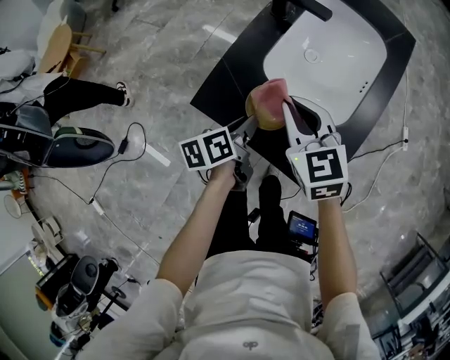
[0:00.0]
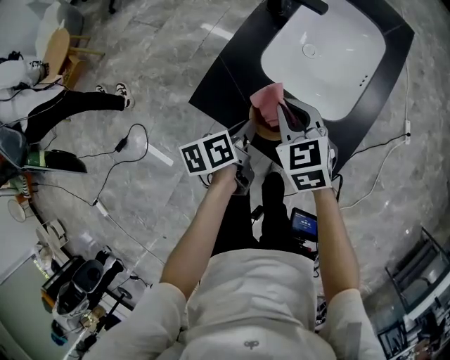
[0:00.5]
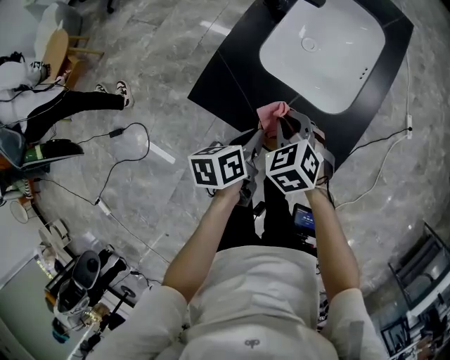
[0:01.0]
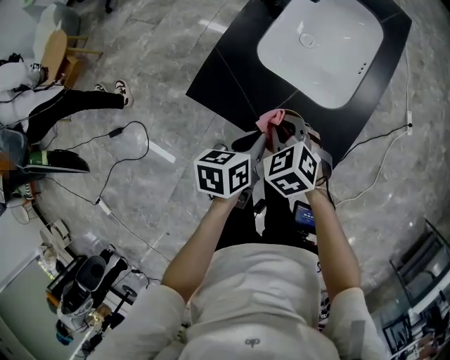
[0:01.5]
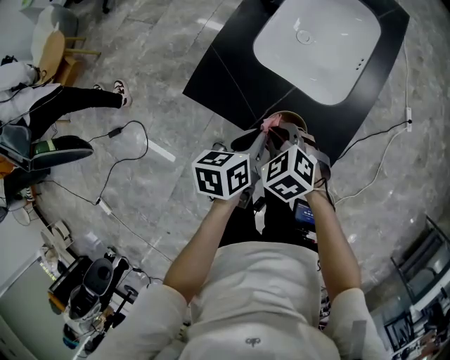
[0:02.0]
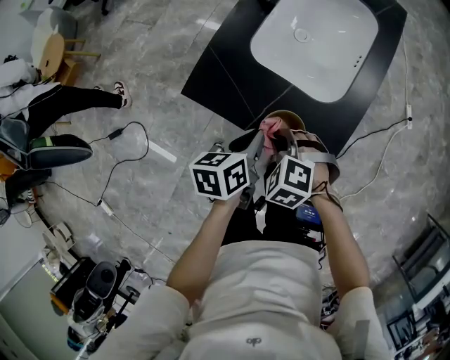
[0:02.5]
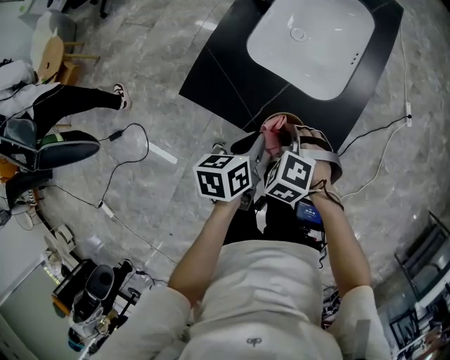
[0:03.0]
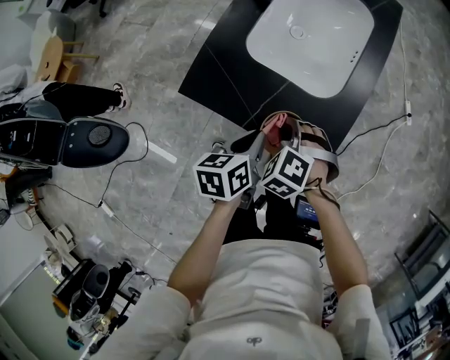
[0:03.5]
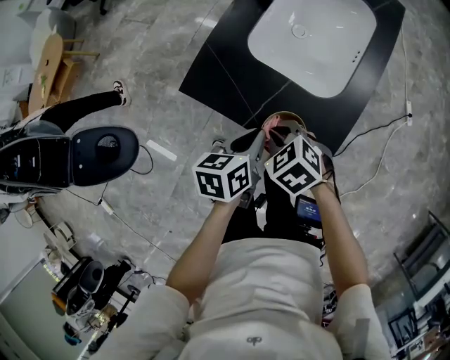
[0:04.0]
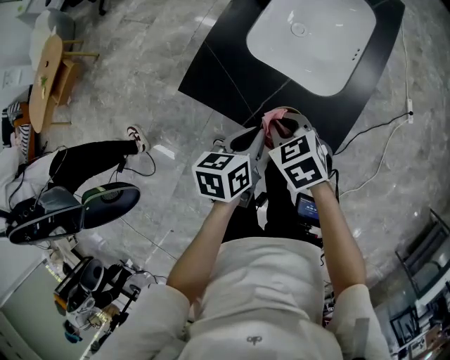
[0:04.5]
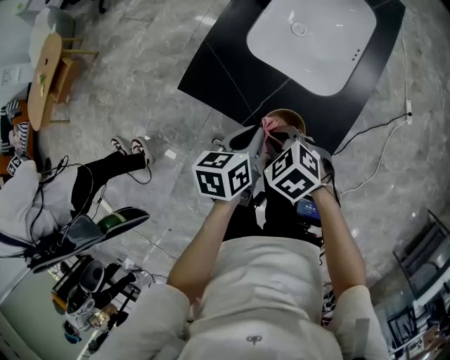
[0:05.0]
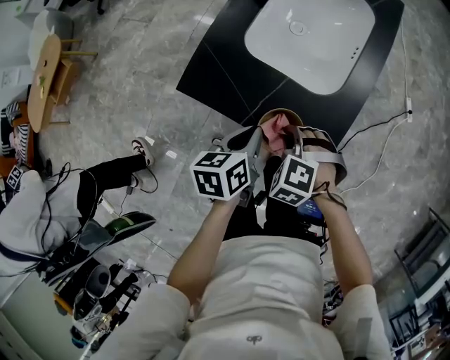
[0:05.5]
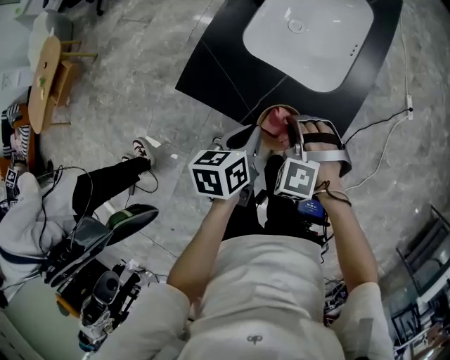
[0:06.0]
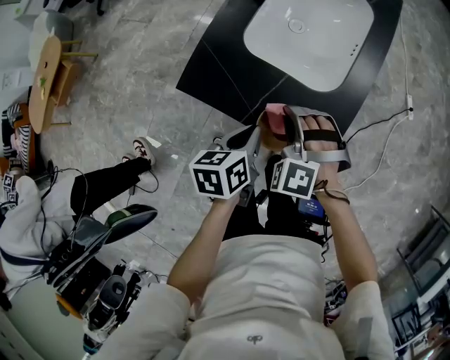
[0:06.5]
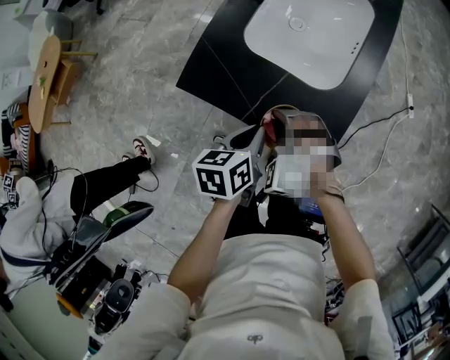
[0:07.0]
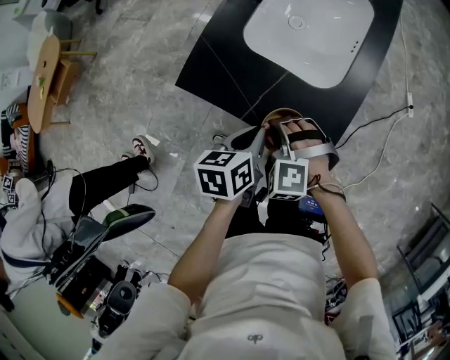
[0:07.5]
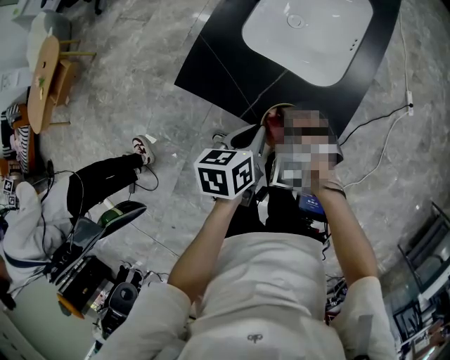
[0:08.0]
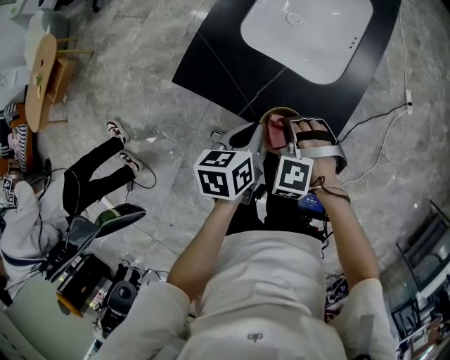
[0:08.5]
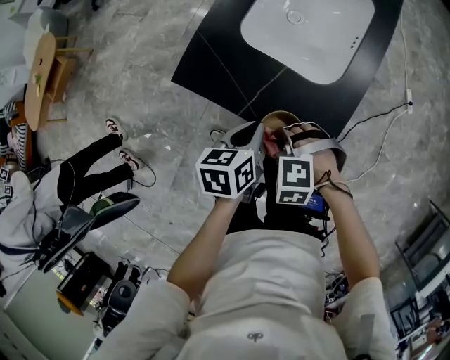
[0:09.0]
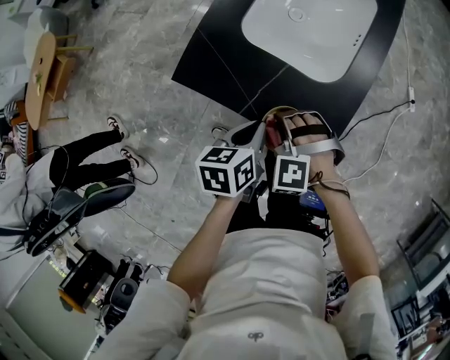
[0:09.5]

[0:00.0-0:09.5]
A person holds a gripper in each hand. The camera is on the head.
0:00.0 to 0:02.0: The left gripper moves backward and to the right, approximately 10 cm, and rotates about 20 degrees, while the right gripper heads downward and backward, covering some 15 cm, and swivels some 30 degrees.
0:04.0 to 0:05.5: The right gripper shifts by about 5 cm, and changes its angle by roughly 30 degrees.
0:07.5 to 0:09.5: The right gripper travels backward and back again, approximately 5 cm each way.

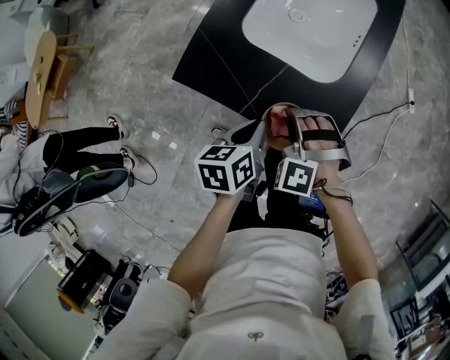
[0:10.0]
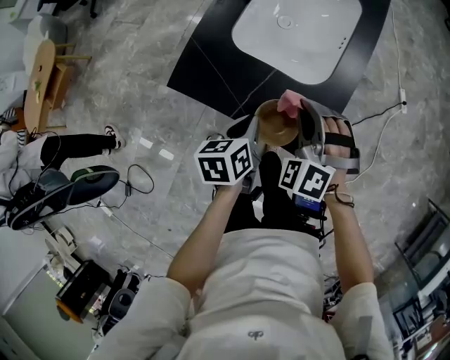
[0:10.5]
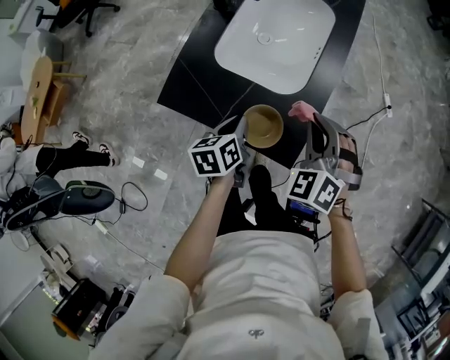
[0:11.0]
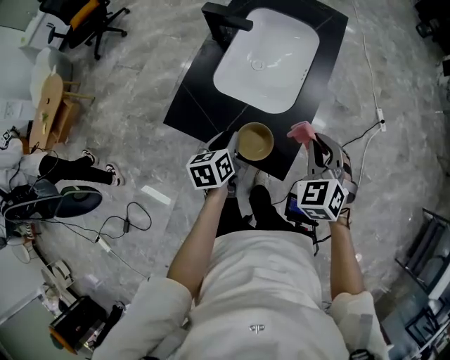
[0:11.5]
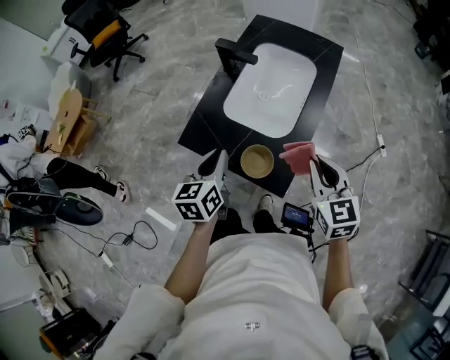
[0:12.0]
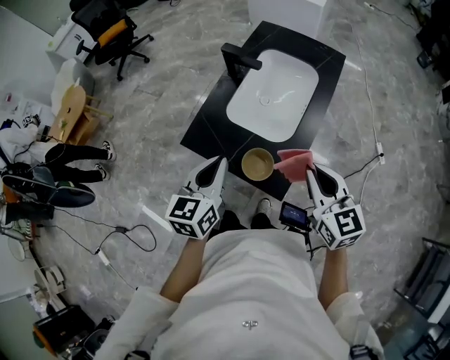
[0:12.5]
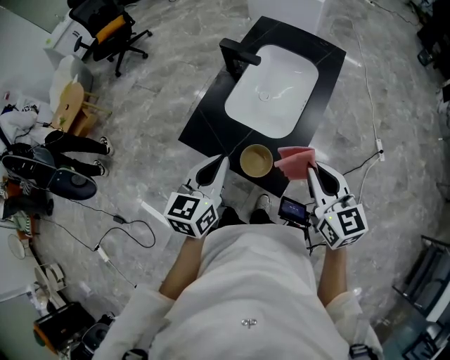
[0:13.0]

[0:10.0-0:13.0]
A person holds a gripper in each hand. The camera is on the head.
0:10.0 to 0:11.5: The right gripper moves to the right and upward, some 20 cm, and rolls clockwise, seen from behind, by about 40 degrees. Meanwhile the left gripper shifts by about 5 cm, and opens its fingers.
0:11.5 to 0:13.0: The right gripper travels upward by about 10 cm, and changes its angle by approximately 50 degrees, while the left gripper is displaced upward by roughly 20 cm, changes its angle by approximately 30 degrees, and closes.

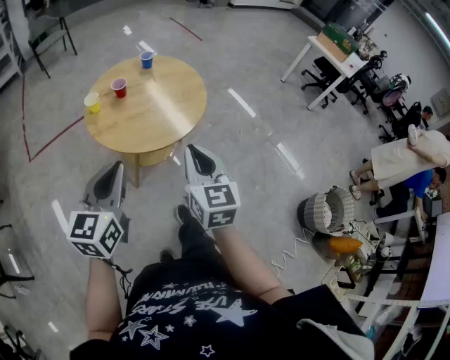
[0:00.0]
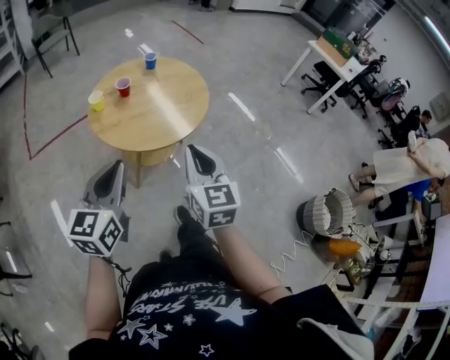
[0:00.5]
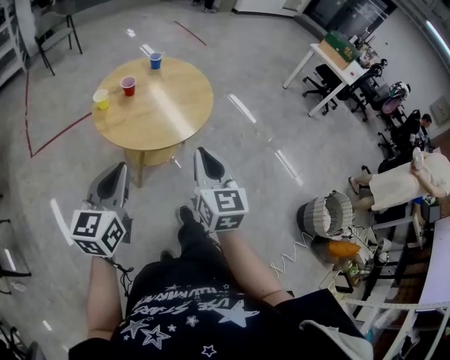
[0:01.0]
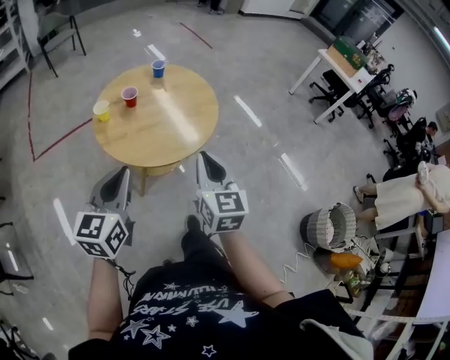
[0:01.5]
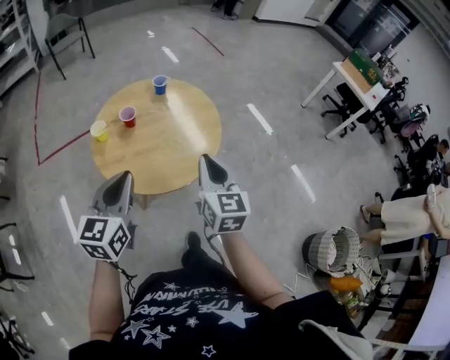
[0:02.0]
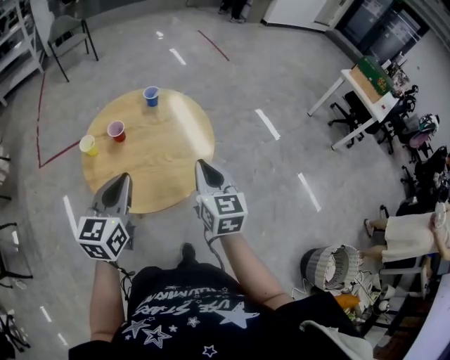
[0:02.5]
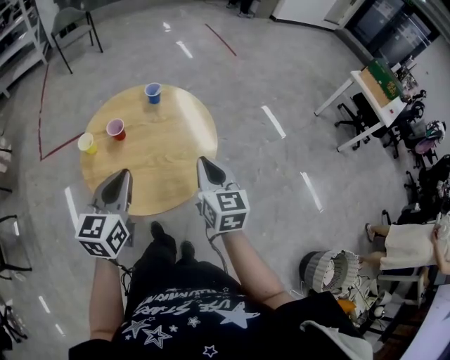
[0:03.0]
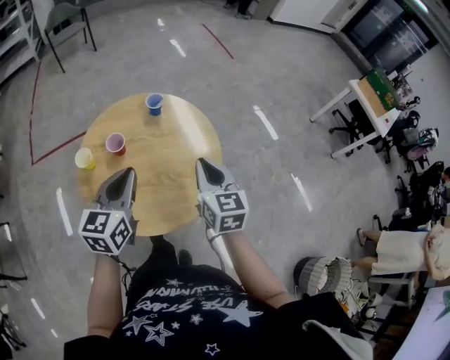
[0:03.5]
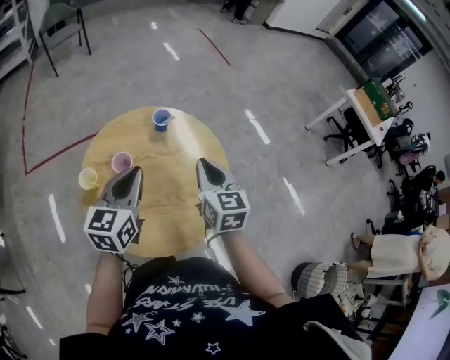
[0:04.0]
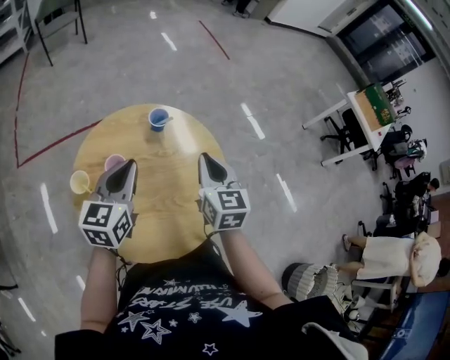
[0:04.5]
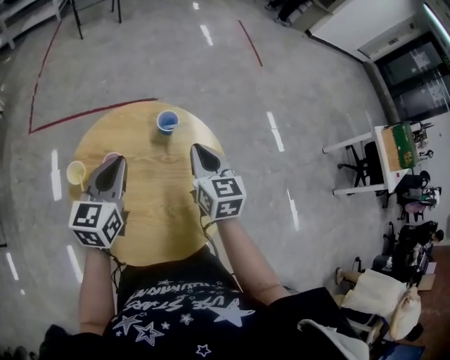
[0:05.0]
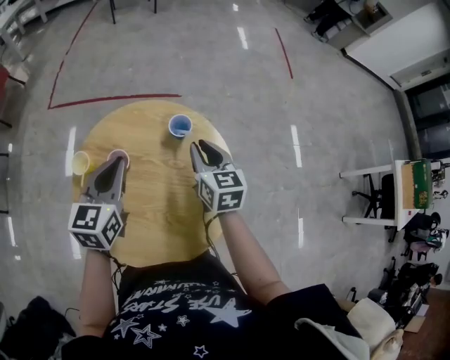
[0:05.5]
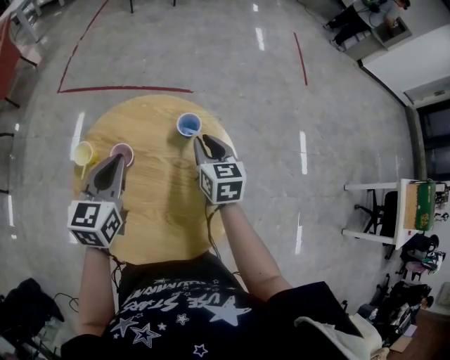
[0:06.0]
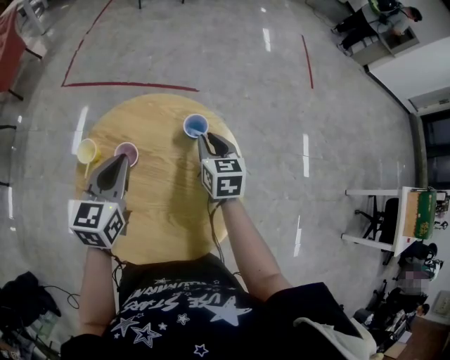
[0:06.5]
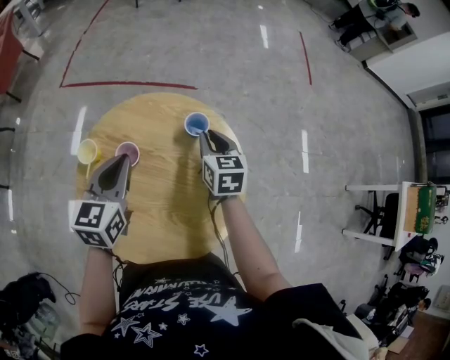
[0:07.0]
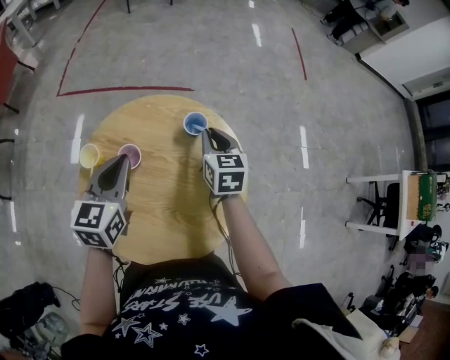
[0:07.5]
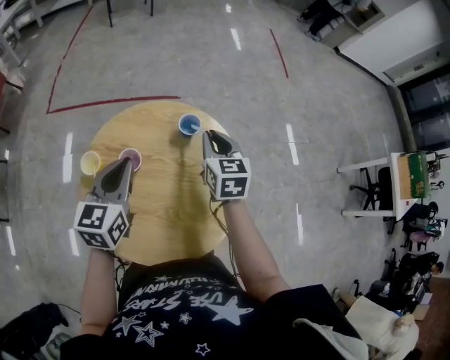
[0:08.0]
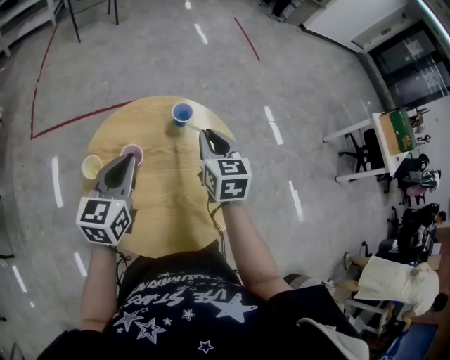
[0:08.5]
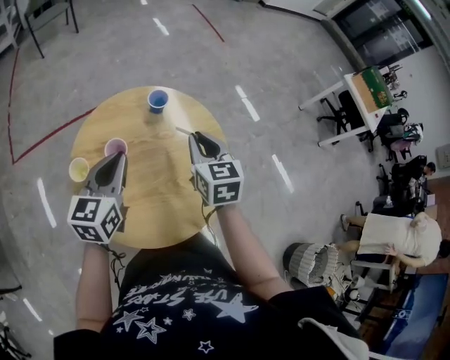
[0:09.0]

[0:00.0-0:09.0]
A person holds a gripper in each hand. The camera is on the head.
0:00.0 to 0:02.0: The two grippers go approximately 15 cm forward.
0:02.0 to 0:04.5: The grippers both shift forward by roughly 35 cm.
0:04.5 to 0:07.0: The right gripper shifts by roughly 25 cm, and swivels approximately 30 degrees; the left gripper moves approximately 10 cm, and rotates some 30 degrees.
0:07.0 to 0:09.0: The right gripper ends up about 20 cm from where it was, and rotates some 30 degrees; the left gripper changes place by roughly 5 cm, and rotates some 30 degrees.

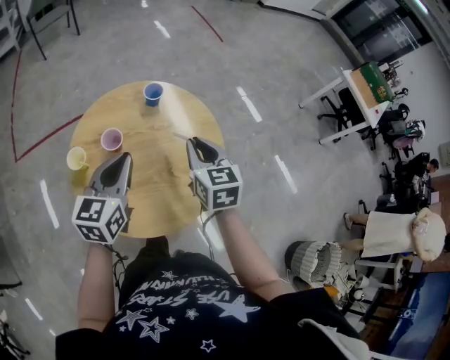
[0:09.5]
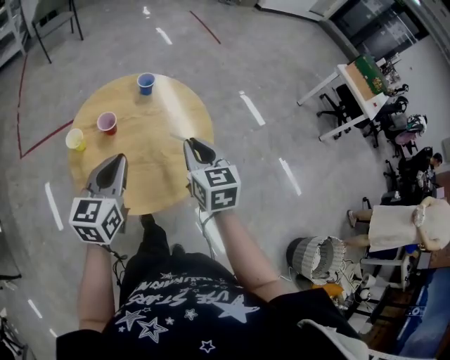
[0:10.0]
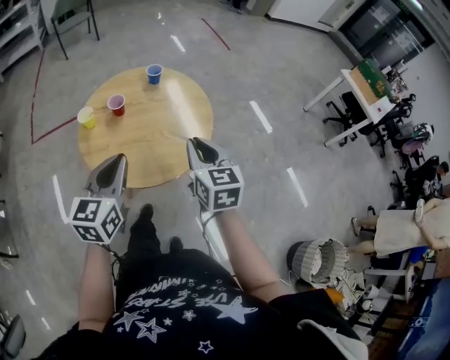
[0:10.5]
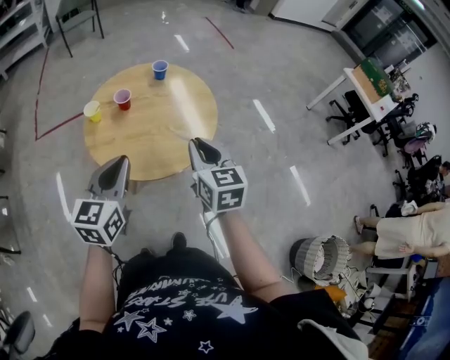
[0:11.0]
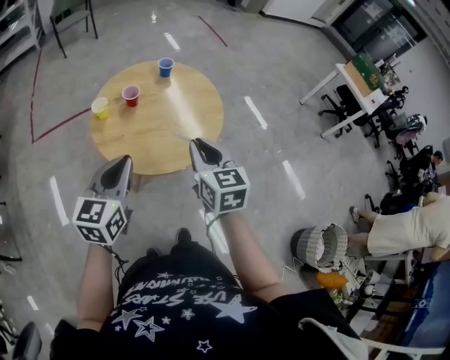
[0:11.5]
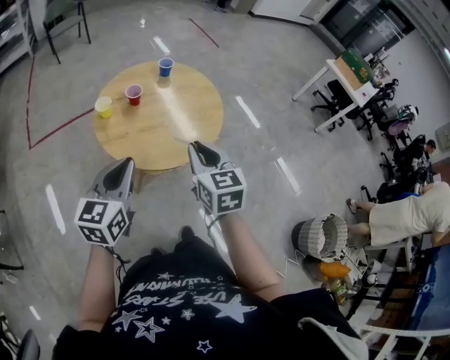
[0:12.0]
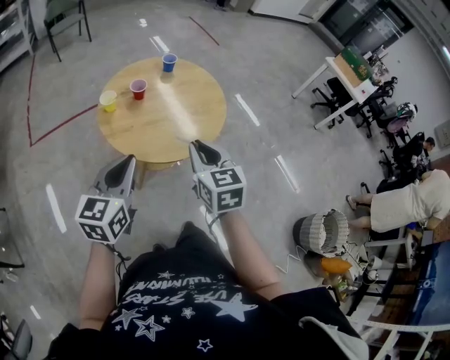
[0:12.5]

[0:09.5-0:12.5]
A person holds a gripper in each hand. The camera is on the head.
0:09.5 to 0:11.0: The two grippers go some 25 cm backward.
0:11.0 to 0:12.5: Both grippers move to the left and backward, approximately 15 cm.

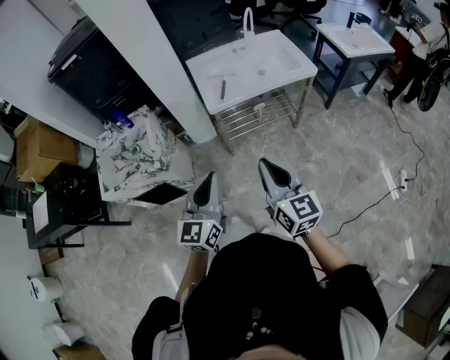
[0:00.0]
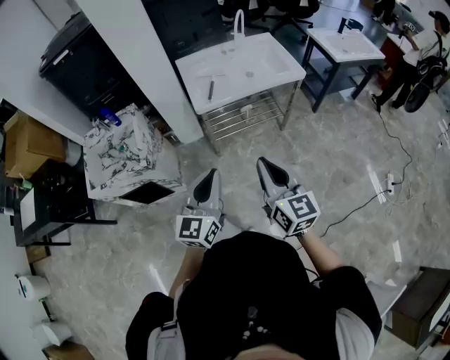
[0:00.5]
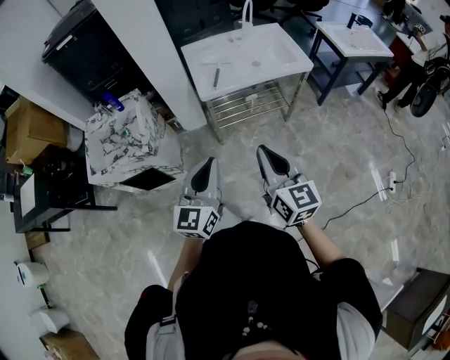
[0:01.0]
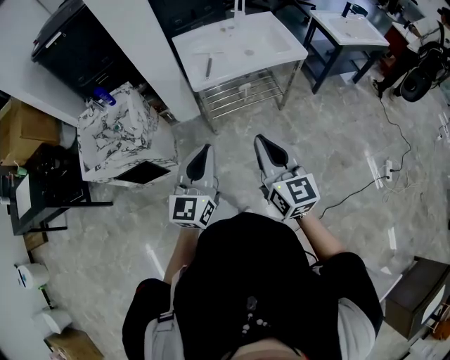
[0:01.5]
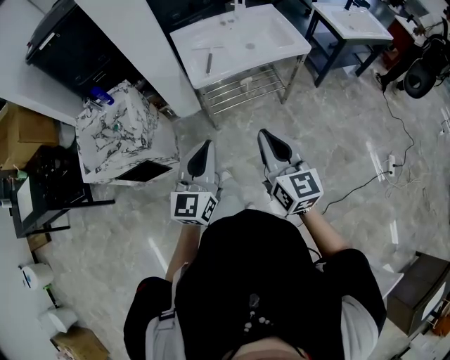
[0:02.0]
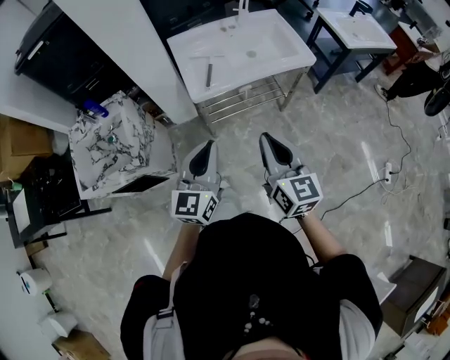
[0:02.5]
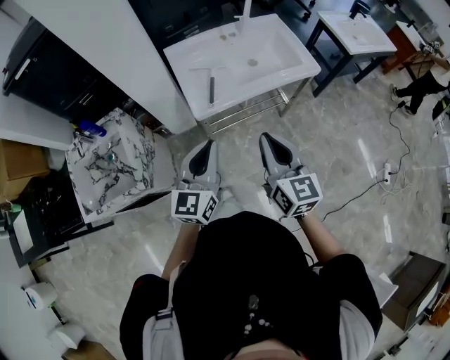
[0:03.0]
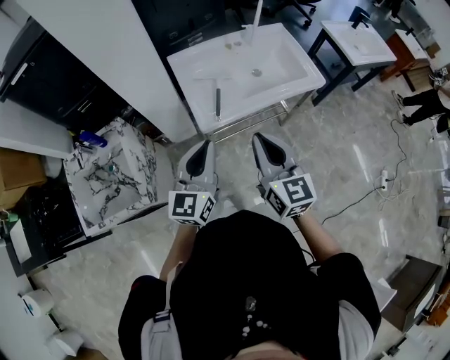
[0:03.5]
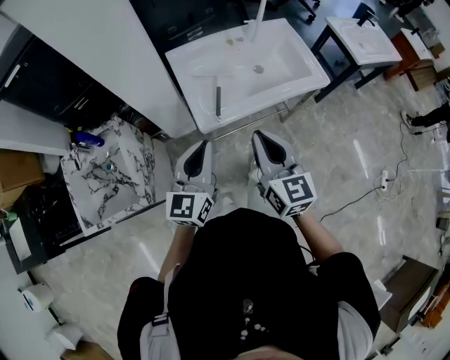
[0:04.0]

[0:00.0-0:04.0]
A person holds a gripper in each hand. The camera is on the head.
0:00.0 to 0:02.0: The grippers make only small movements.
0:02.0 to 0:04.0: The grippers both shift forward by roughly 30 cm.
